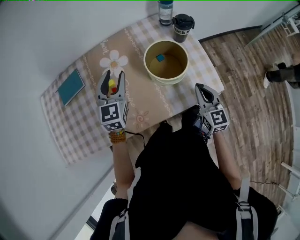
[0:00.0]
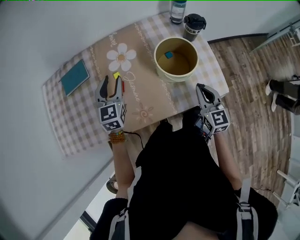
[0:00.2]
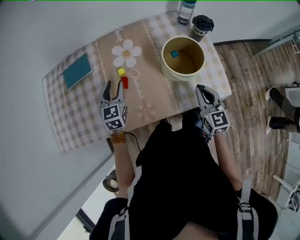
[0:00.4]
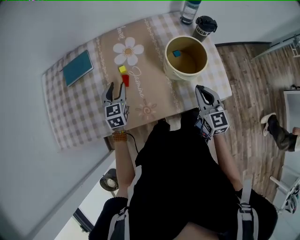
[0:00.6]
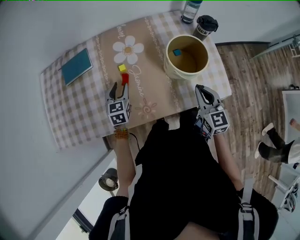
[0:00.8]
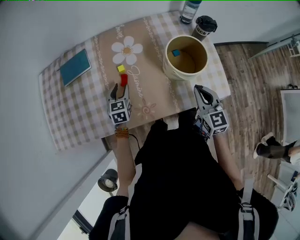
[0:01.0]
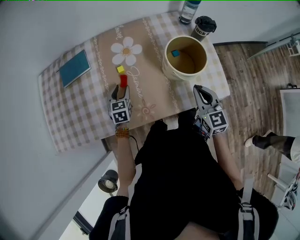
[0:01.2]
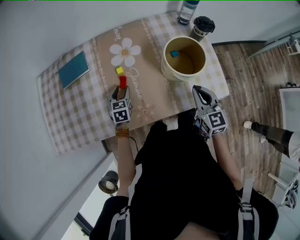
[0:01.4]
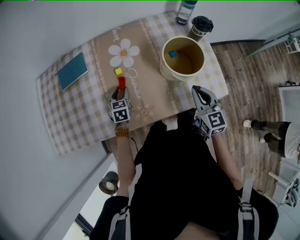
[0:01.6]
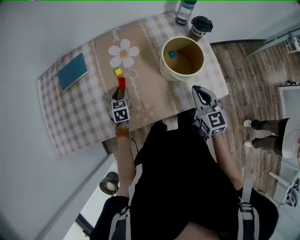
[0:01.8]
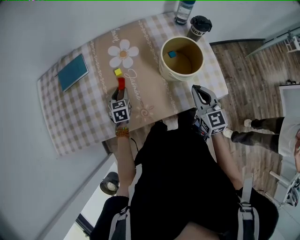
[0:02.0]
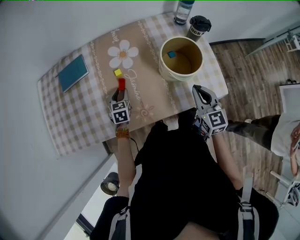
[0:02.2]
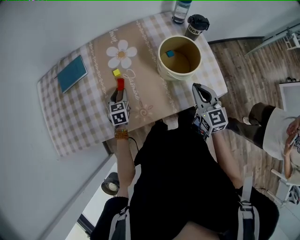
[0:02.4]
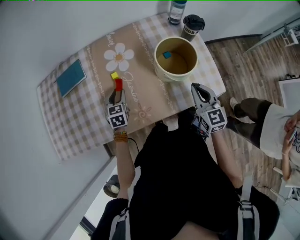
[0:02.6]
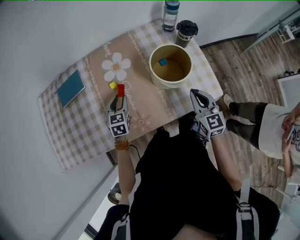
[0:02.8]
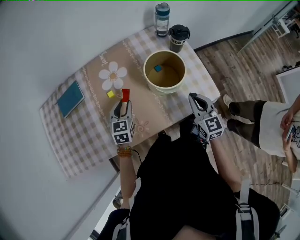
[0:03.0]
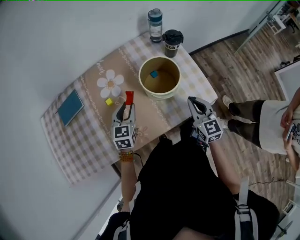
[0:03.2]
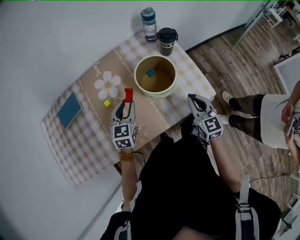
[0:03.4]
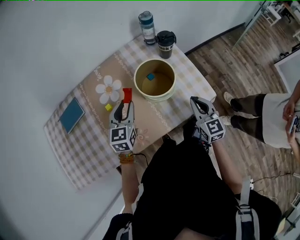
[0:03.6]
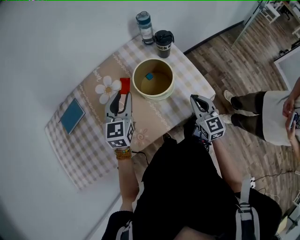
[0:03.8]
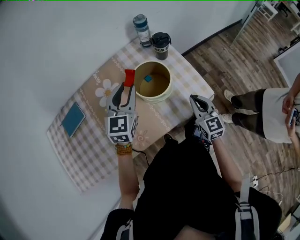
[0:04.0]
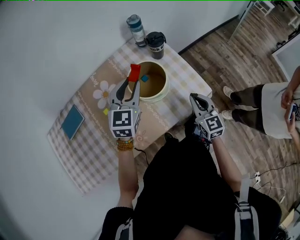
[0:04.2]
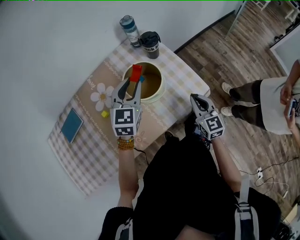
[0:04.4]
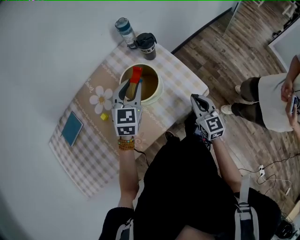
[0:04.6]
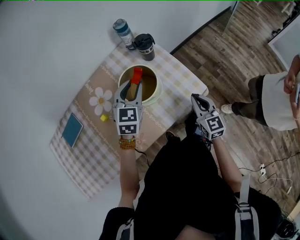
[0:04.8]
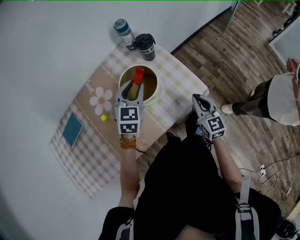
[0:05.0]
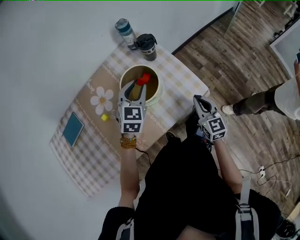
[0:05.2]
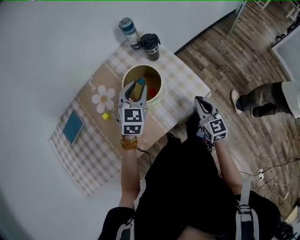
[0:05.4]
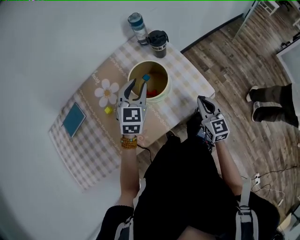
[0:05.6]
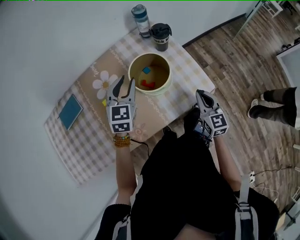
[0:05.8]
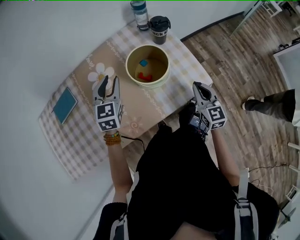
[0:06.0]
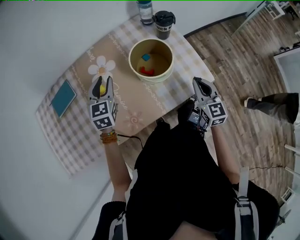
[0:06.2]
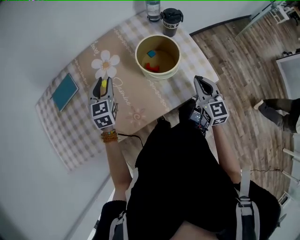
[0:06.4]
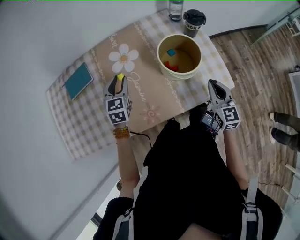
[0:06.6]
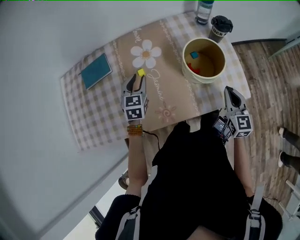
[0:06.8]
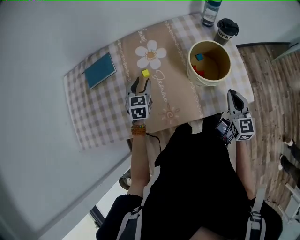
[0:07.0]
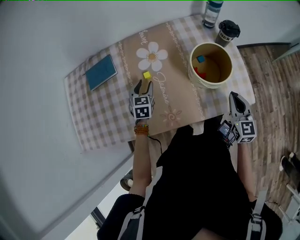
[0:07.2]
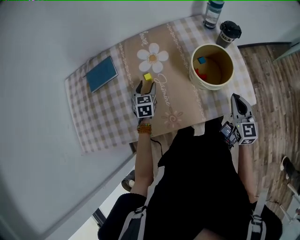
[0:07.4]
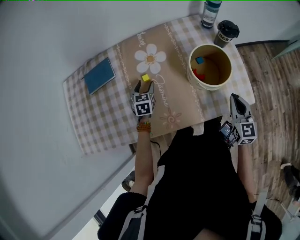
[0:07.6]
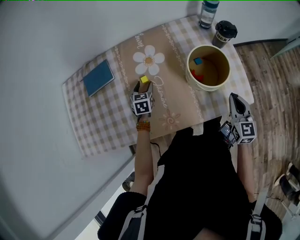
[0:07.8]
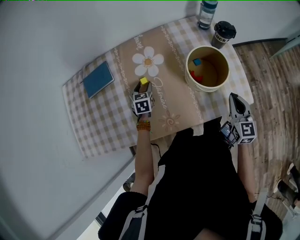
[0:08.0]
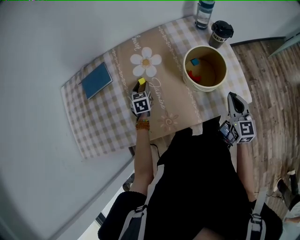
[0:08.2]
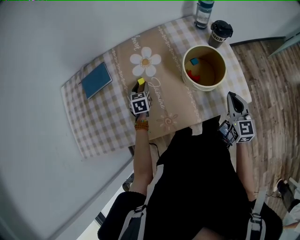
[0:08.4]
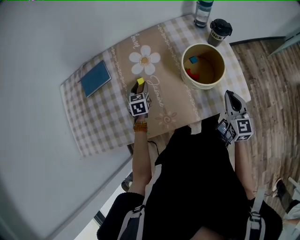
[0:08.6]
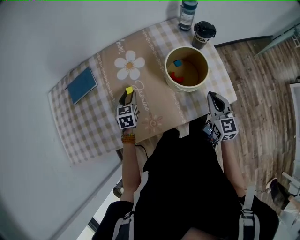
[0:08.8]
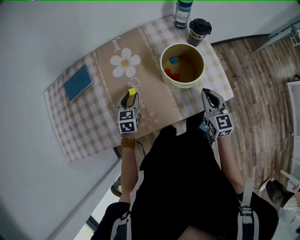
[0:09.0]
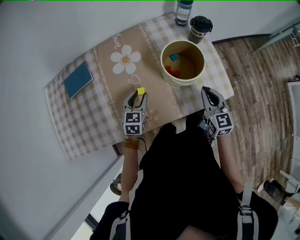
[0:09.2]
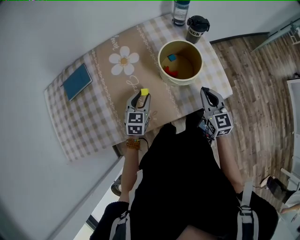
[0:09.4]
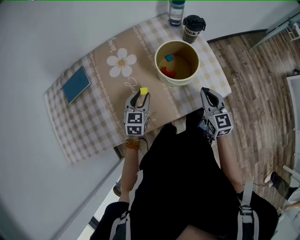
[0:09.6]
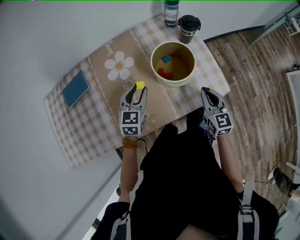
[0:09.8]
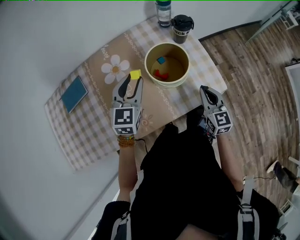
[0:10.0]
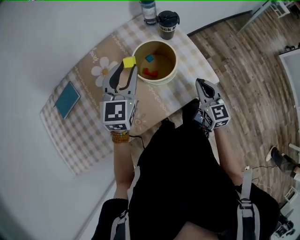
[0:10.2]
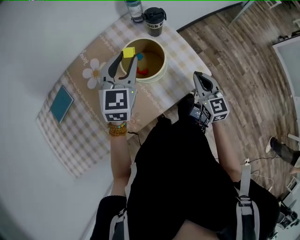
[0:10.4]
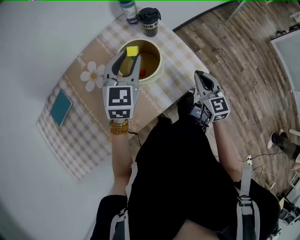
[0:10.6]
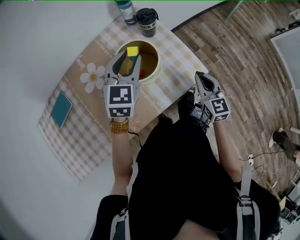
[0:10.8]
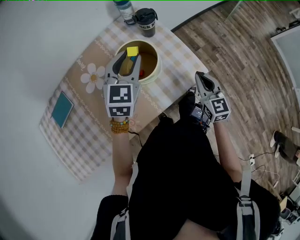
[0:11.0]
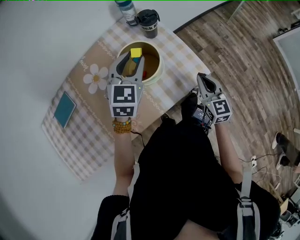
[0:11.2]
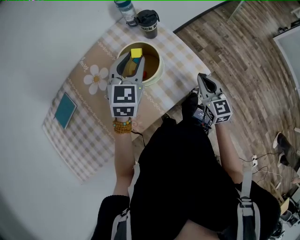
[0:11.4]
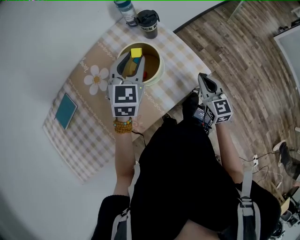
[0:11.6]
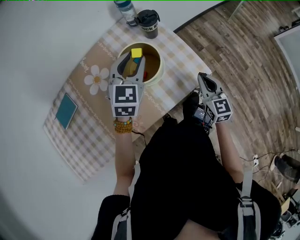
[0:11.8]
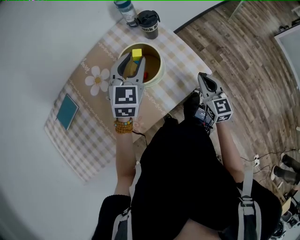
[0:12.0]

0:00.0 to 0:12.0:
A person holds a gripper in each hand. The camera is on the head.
0:00.0 to 0:01.6: The right gripper goes about 10 cm to the left; the left gripper travels downward and to the left by approximately 25 cm, and rotates about 30 degrees.
0:01.6 to 0:03.0: The right gripper moves to the right, about 5 cm. The left gripper moves upward and to the right, some 15 cm.
0:03.0 to 0:04.4: The right gripper heads to the right, covering some 10 cm; the left gripper travels to the right, upward and forward by about 25 cm, and changes its angle by approximately 30 degrees.
0:04.4 to 0:06.0: The left gripper moves to the left, about 15 cm.
0:06.0 to 0:07.6: The right gripper travels to the left by roughly 5 cm. The left gripper heads downward and to the left, covering approximately 25 cm, swivels approximately 30 degrees, and opens.
0:07.6 to 0:09.0: The left gripper moves backward and to the right, about 10 cm, and closes its fingers.
0:09.0 to 0:10.4: The right gripper moves to the right, some 10 cm. Meanwhile the left gripper travels upward and to the right by about 30 cm, and rotates roughly 30 degrees.
0:10.4 to 0:12.0: The left gripper ends up approximately 5 cm from where it was.

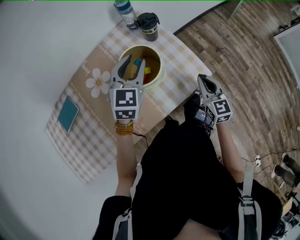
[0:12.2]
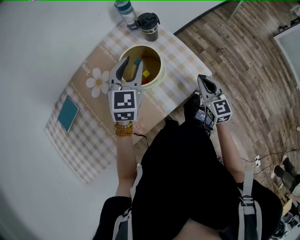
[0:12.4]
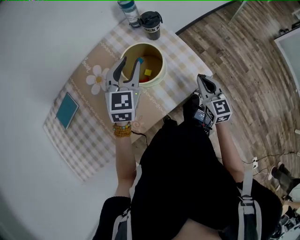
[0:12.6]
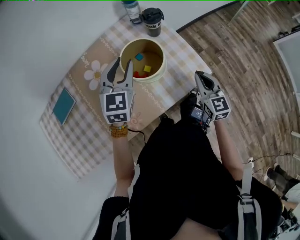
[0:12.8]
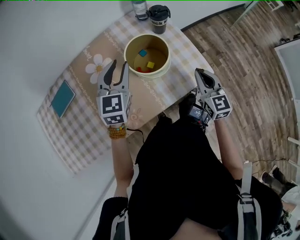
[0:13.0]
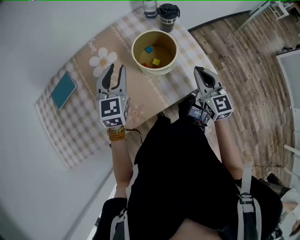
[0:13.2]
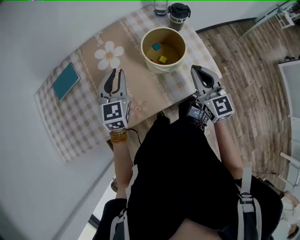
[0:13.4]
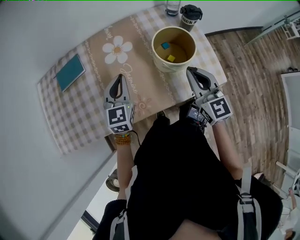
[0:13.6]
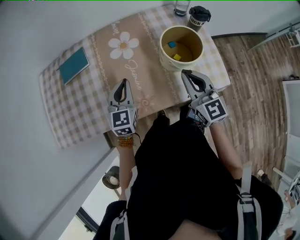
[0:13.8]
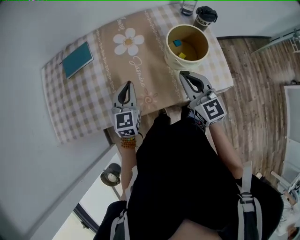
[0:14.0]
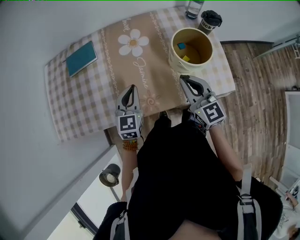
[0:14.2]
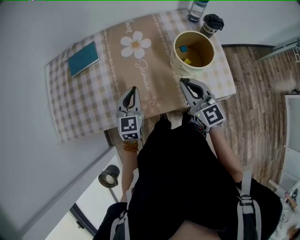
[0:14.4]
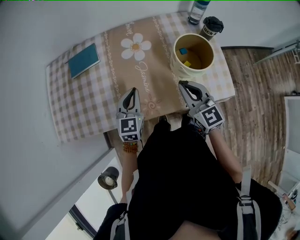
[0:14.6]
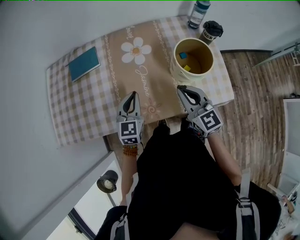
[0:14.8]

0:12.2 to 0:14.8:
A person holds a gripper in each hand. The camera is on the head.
0:12.2 to 0:13.4: The left gripper is displaced to the left and backward by approximately 20 cm, and turns by roughly 30 degrees. The right gripper goes about 15 cm to the left and upward.
0:13.4 to 0:14.8: The right gripper heads to the left, covering roughly 15 cm, and rotates about 20 degrees. Meanwhile the left gripper travels to the left, backward and downward by approximately 15 cm.

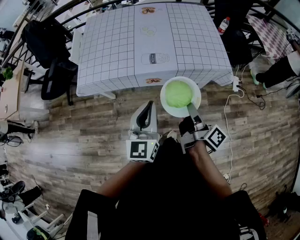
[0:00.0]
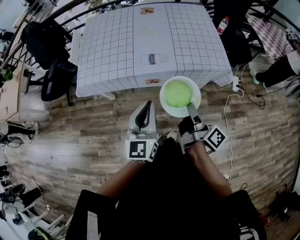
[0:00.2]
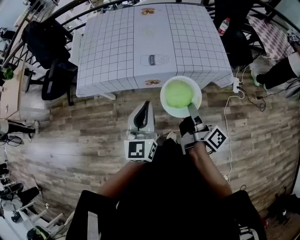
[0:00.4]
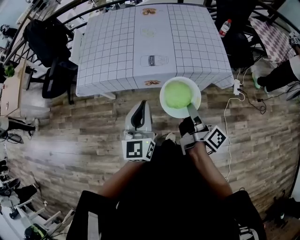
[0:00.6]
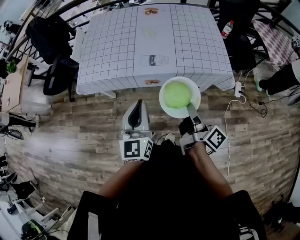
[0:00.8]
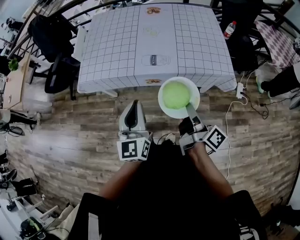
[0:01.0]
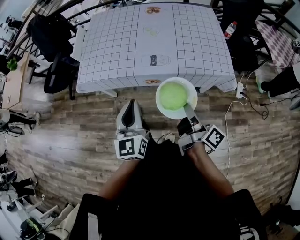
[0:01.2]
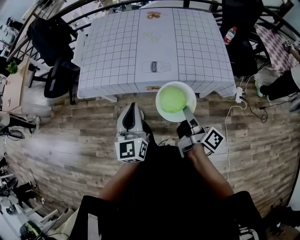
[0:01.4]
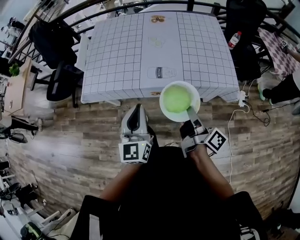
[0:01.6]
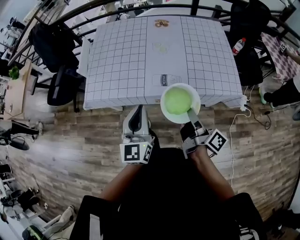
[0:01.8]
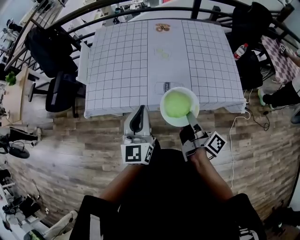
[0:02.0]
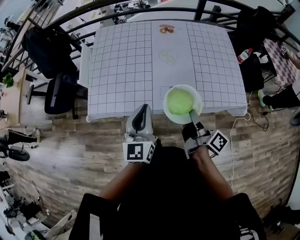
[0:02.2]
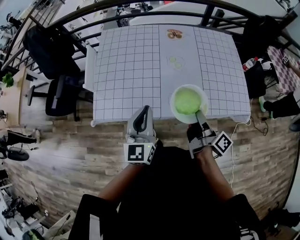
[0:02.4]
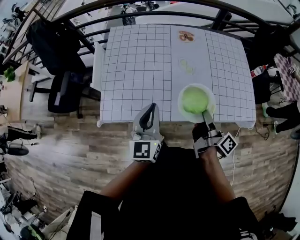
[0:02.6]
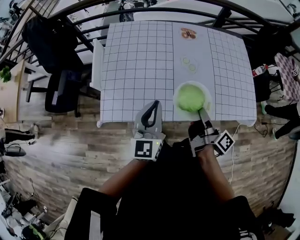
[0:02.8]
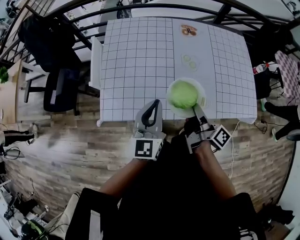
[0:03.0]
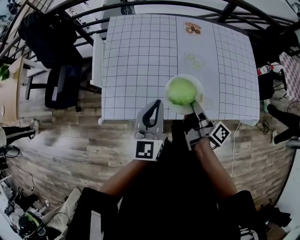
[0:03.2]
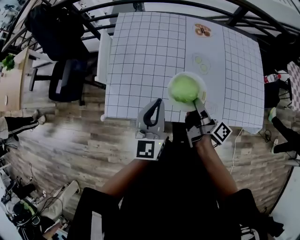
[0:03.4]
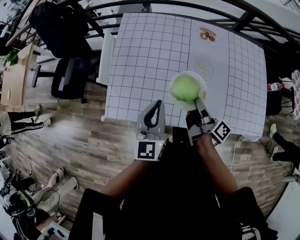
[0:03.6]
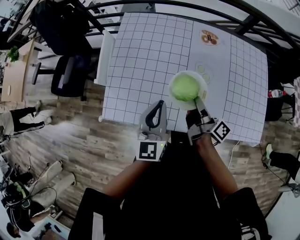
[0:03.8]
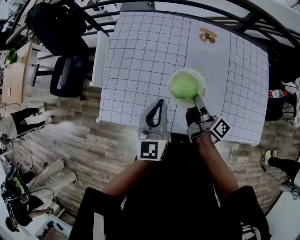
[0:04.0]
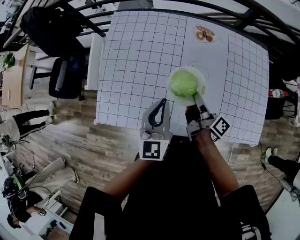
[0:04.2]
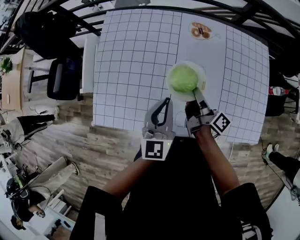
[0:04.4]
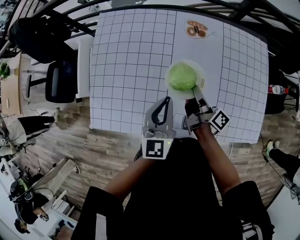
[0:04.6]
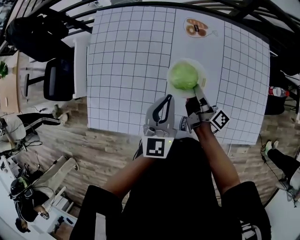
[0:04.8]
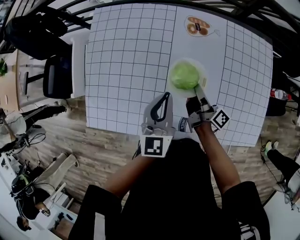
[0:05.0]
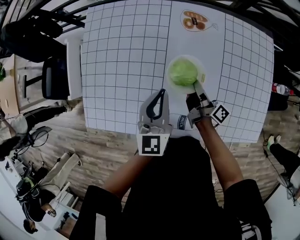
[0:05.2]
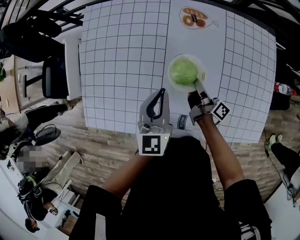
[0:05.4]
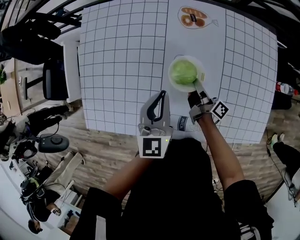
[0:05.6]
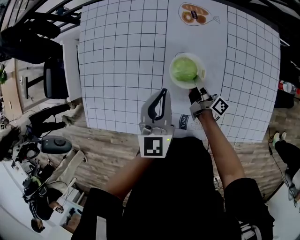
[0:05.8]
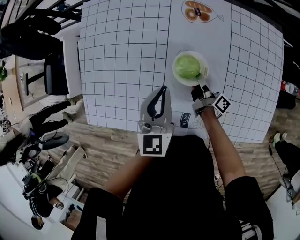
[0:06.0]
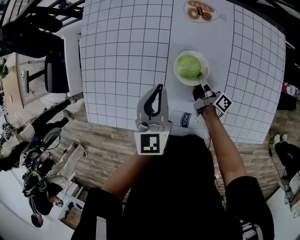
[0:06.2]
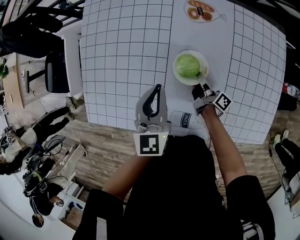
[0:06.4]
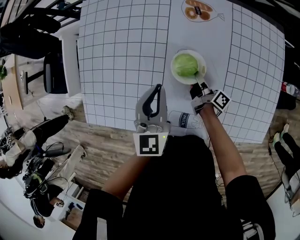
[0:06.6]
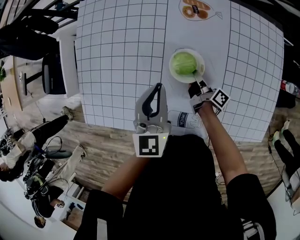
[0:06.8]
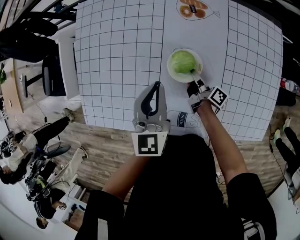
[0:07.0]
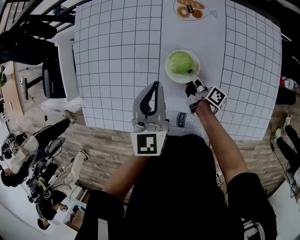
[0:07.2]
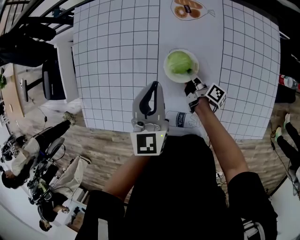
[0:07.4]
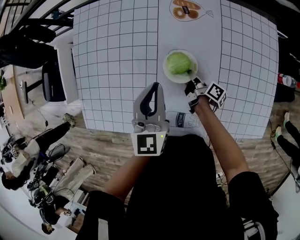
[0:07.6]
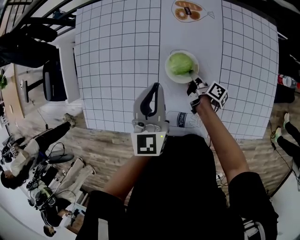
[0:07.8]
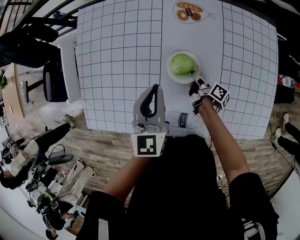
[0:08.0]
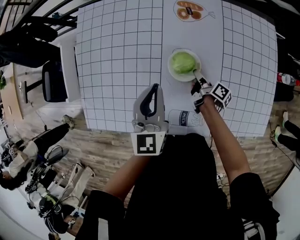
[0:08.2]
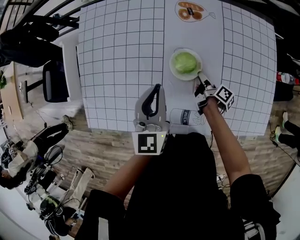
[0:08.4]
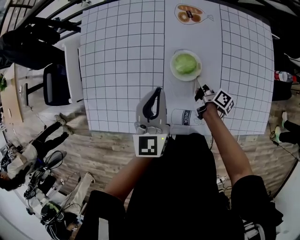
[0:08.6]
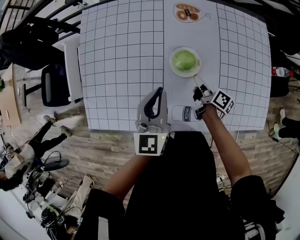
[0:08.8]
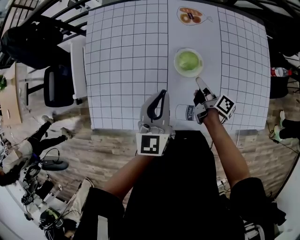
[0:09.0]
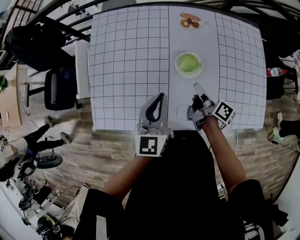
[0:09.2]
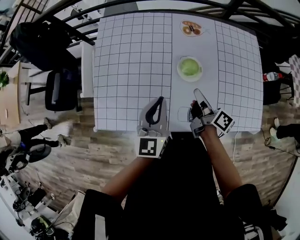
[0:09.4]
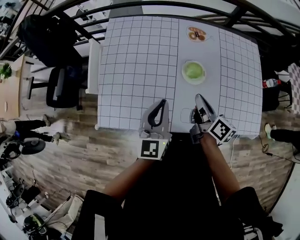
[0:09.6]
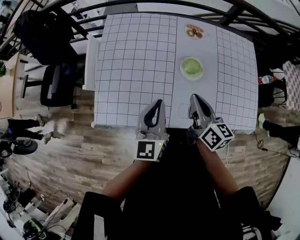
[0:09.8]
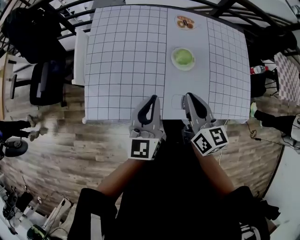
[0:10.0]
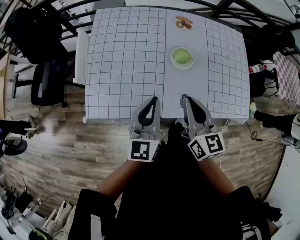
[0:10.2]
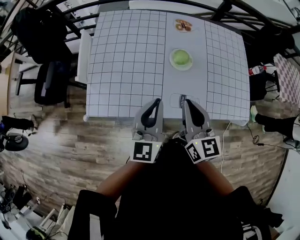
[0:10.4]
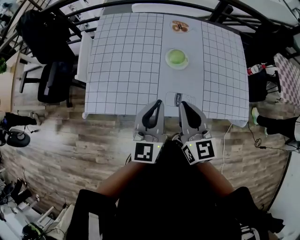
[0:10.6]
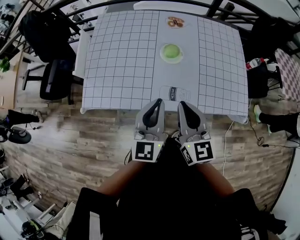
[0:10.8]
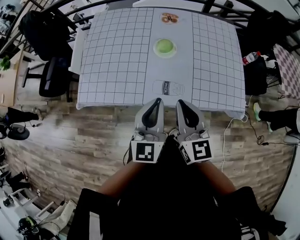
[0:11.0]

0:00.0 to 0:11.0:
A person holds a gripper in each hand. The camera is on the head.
0:00.0 to 0:01.6: The left gripper ends up roughly 10 cm from where it was.
0:01.6 to 0:03.2: The left gripper ends up approximately 35 cm from where it was.
0:03.2 to 0:04.8: The left gripper changes place by roughly 25 cm.
0:04.8 to 0:06.2: The left gripper shifts by approximately 5 cm.
0:07.8 to 0:09.4: The left gripper ends up approximately 15 cm from where it was.
0:09.4 to 0:11.0: The left gripper moves approximately 25 cm.
